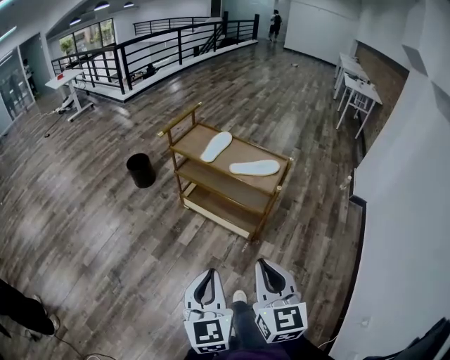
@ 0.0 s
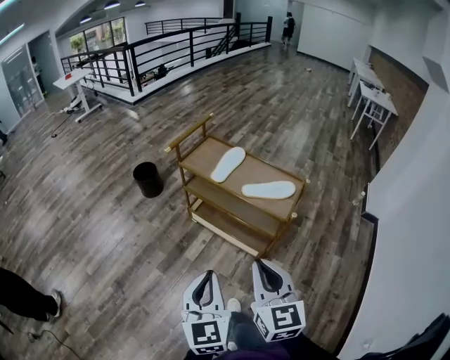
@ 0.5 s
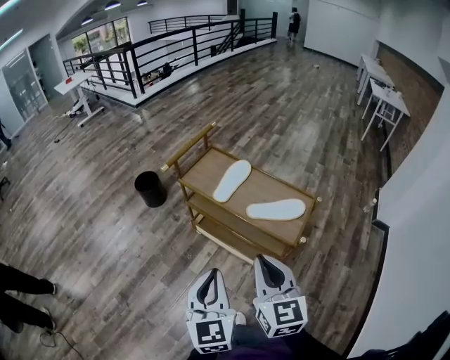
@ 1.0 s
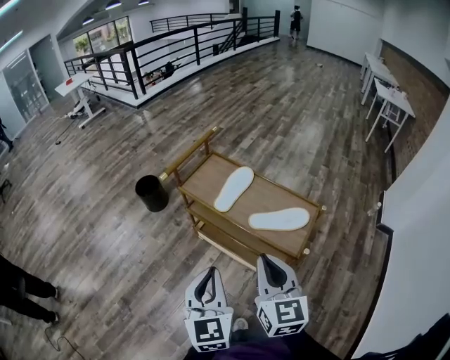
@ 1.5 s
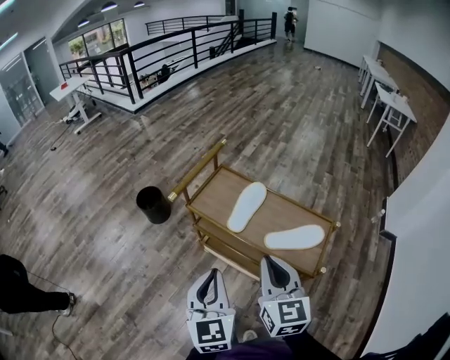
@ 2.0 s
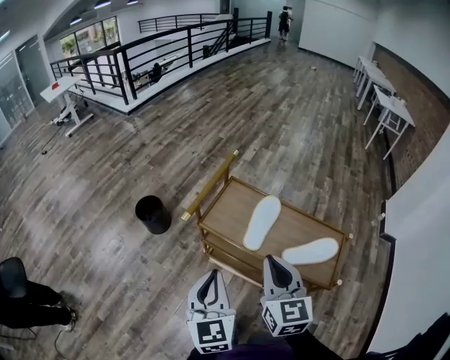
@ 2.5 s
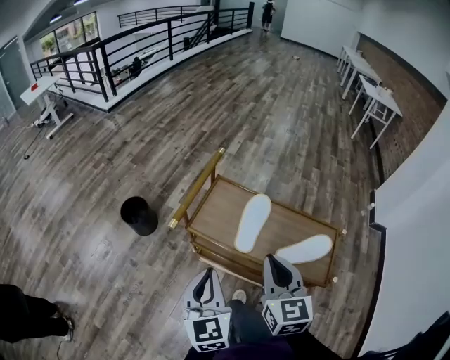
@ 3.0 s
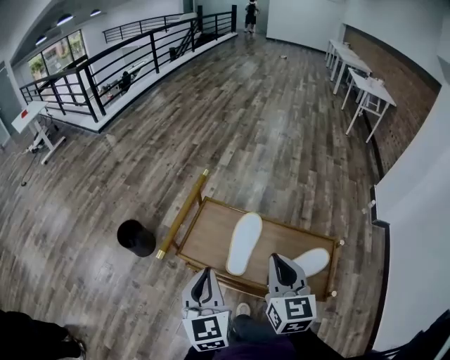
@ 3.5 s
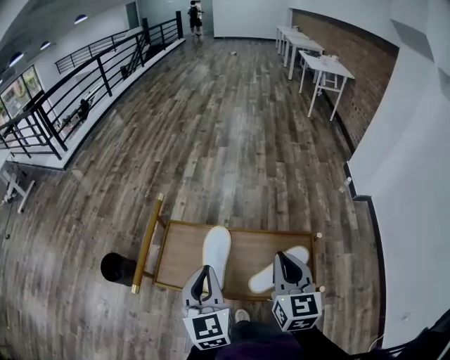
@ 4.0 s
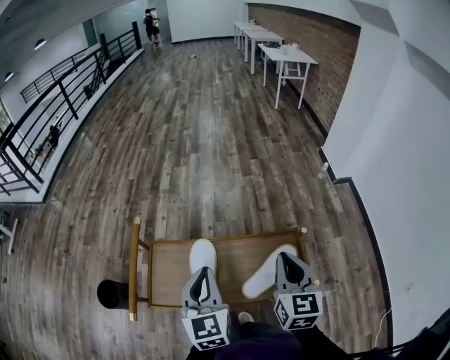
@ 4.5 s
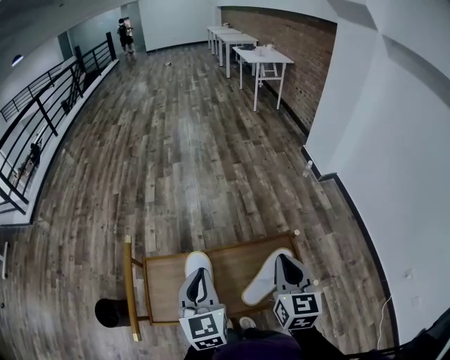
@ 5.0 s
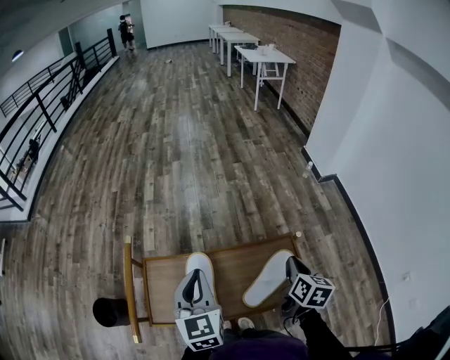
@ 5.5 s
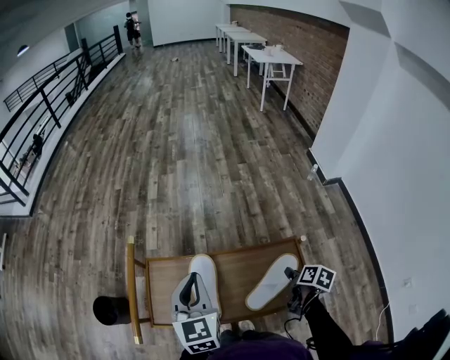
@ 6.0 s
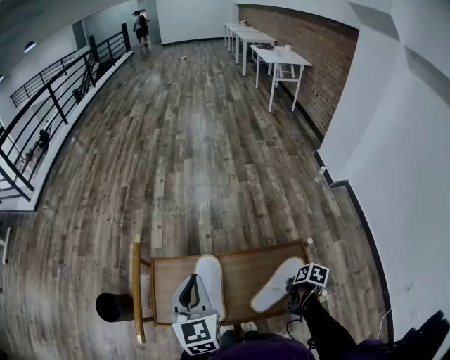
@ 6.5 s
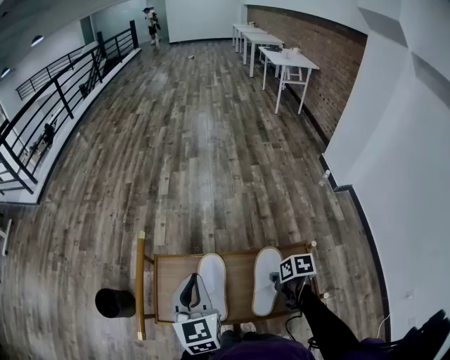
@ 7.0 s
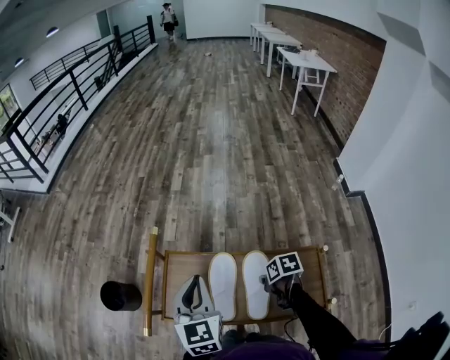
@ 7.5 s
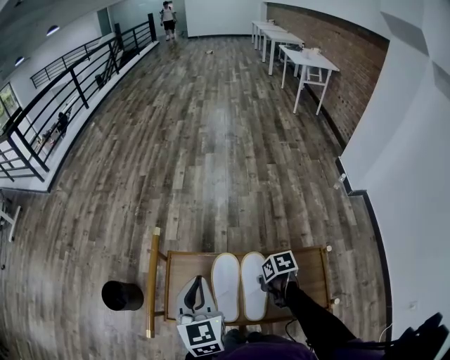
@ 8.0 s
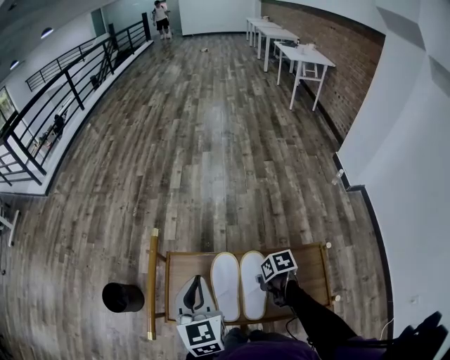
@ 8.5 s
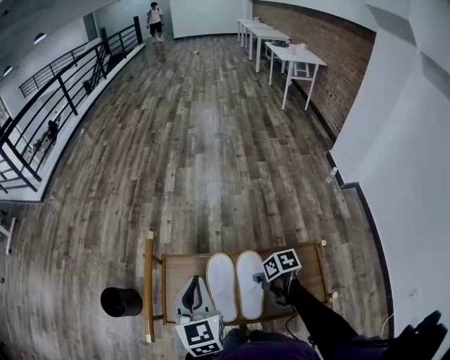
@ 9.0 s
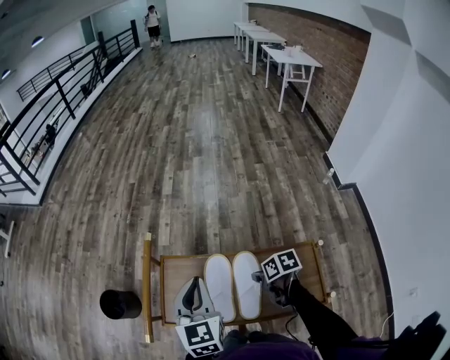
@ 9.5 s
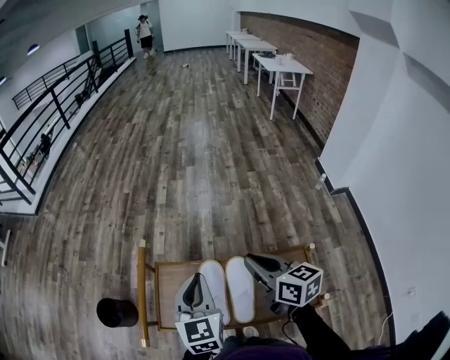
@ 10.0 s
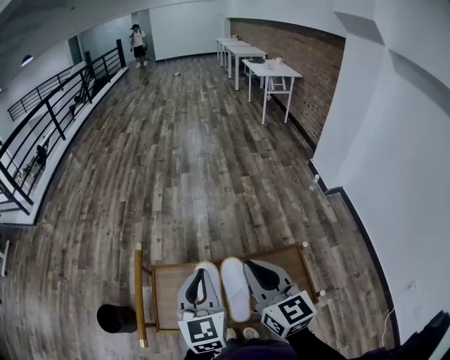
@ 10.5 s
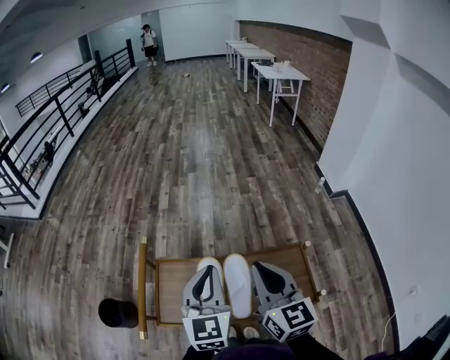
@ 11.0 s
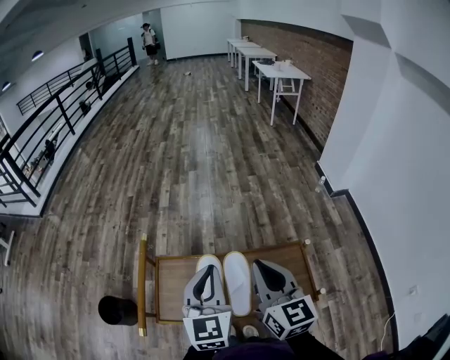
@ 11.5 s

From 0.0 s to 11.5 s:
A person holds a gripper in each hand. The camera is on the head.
From 0.0 s to 2.0 s: Both grippers move forward, roughly 40 cm.
From 2.0 s to 4.0 s: The right gripper shifts about 25 cm forward and to the right, and swivels about 30 degrees. Meanwhile the left gripper goes about 25 cm forward.
From 4.0 s to 6.0 s: The left gripper goes some 10 cm forward, while the right gripper is displaced downward and to the right by about 25 cm, rolls clockwise, seen from behind, by approximately 50 degrees, and opens up.
From 6.0 s to 7.5 s: The left gripper moves approximately 5 cm. The right gripper shifts by roughly 20 cm, turns by about 50 degrees, and closes its fingers.
From 7.5 s to 9.5 s: The grippers make only small movements.
From 9.5 s to 11.5 s: The right gripper goes approximately 30 cm upward, and tilts its fingers some 50 degrees upward, while the left gripper changes place by about 10 cm.

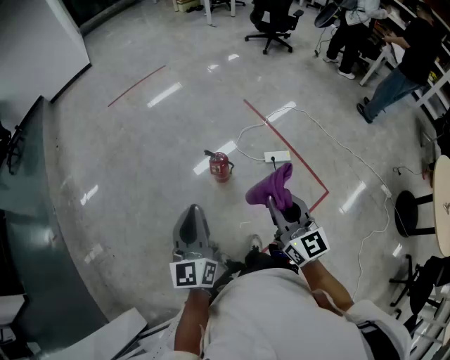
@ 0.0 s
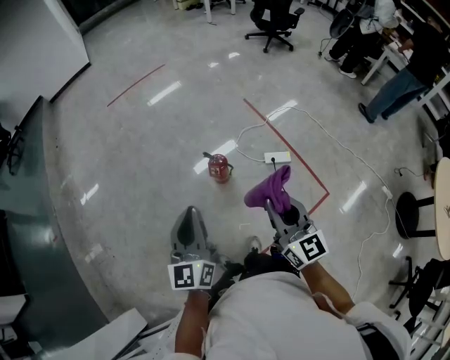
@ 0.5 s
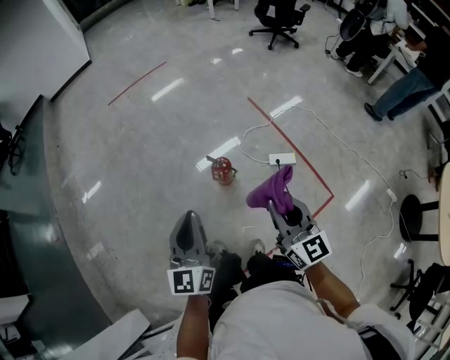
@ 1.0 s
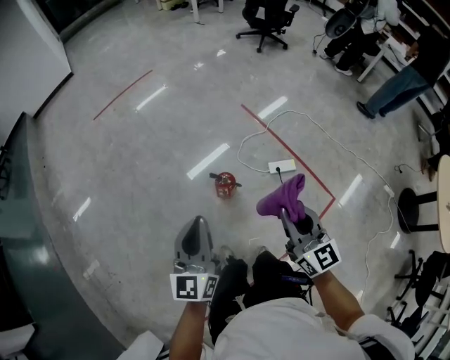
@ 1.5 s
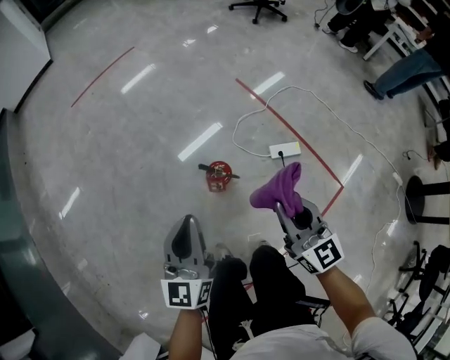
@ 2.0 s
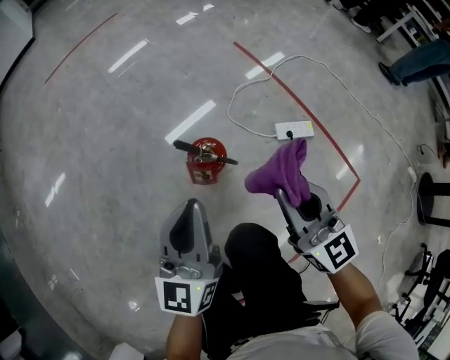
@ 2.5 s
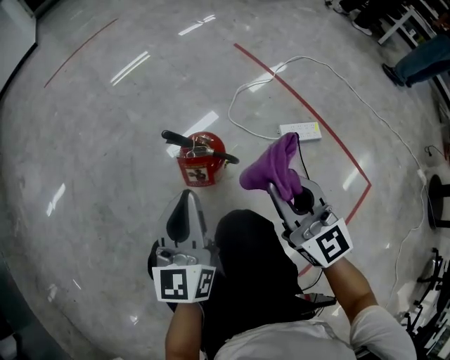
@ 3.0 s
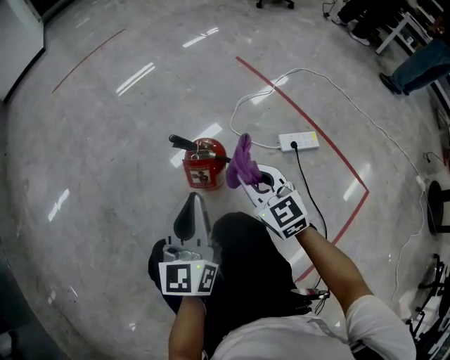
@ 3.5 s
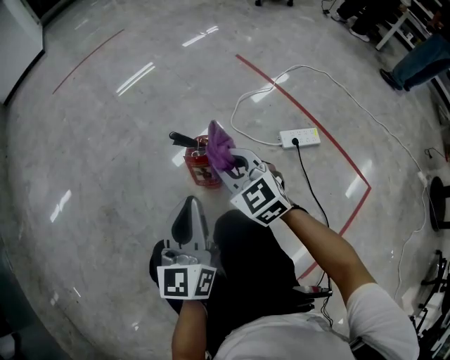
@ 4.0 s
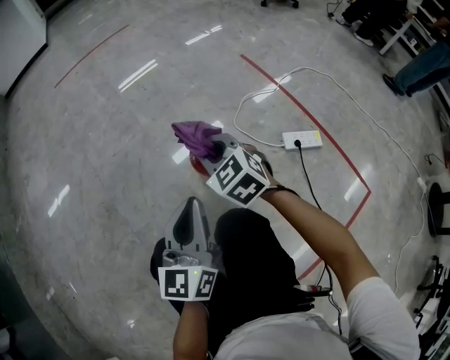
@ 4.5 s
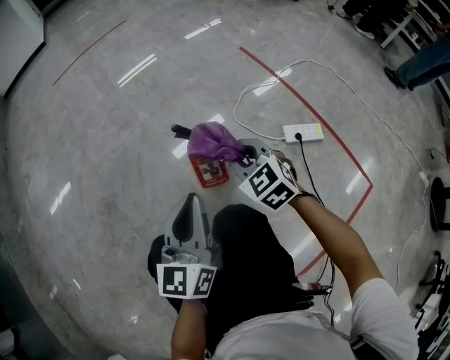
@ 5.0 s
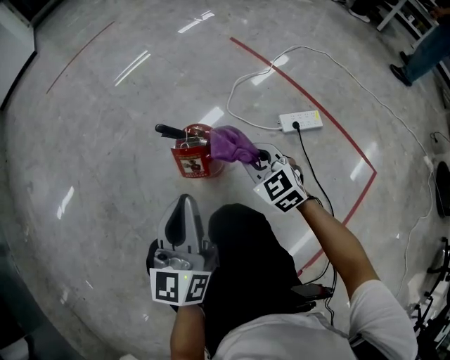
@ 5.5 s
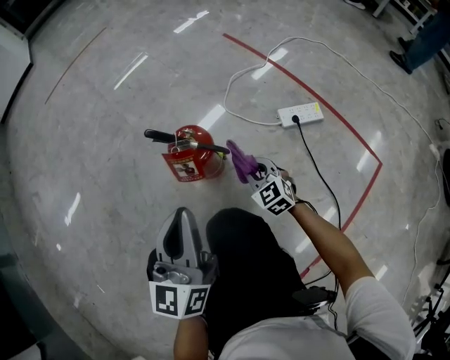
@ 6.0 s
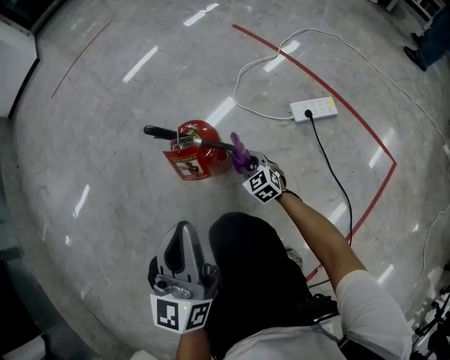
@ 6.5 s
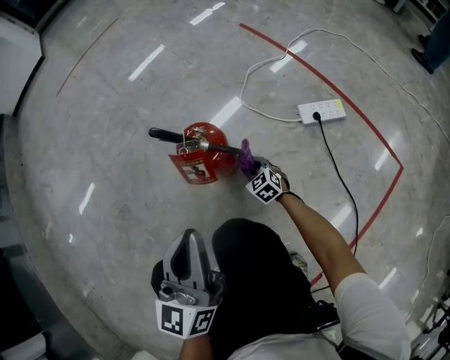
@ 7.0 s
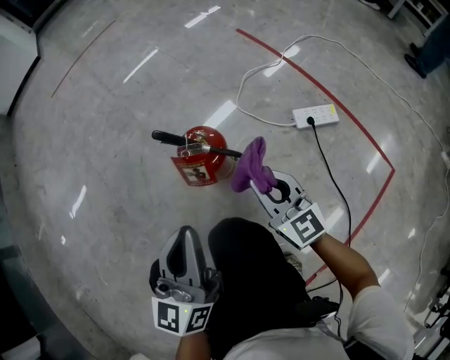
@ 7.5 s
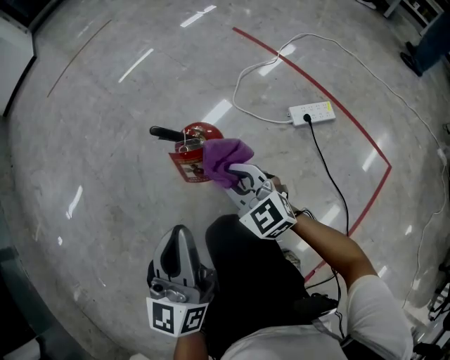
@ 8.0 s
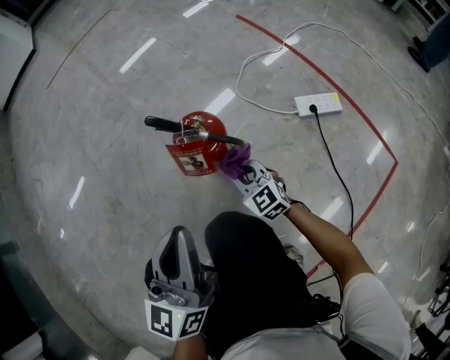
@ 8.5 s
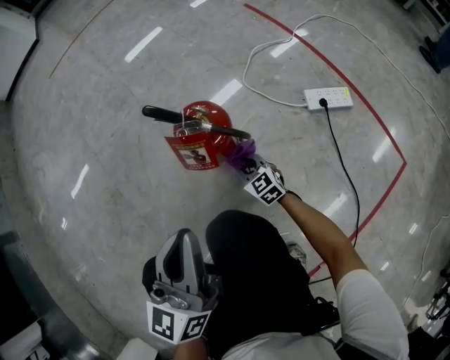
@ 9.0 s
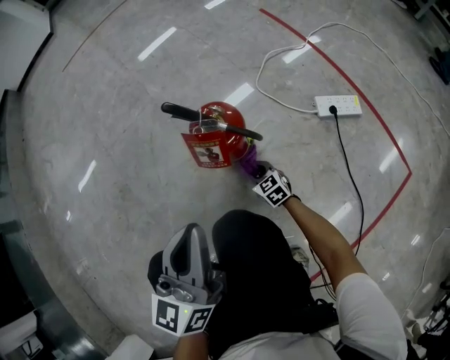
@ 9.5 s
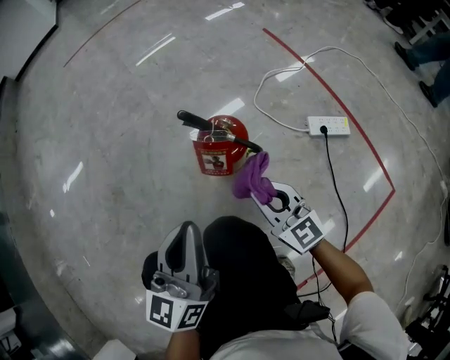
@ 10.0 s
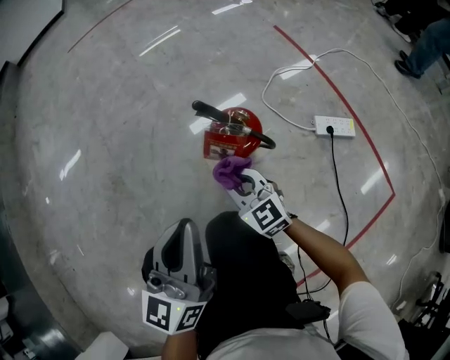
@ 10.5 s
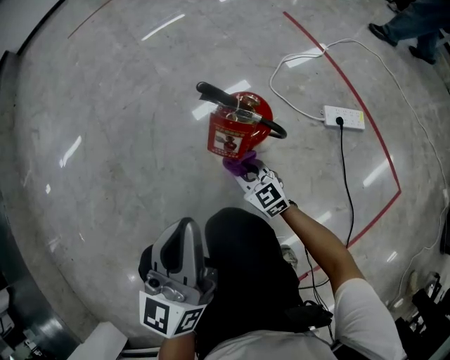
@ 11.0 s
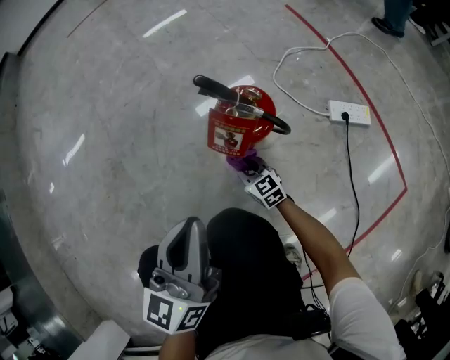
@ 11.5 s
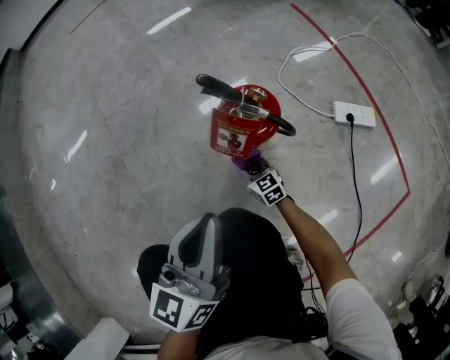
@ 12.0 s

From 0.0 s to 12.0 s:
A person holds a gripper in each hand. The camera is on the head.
From 0.0 s to 2.0 s: The right gripper shifts roughly 30 cm downward and forward; the left gripper travels forward and downward by some 30 cm.
From 2.0 s to 4.0 s: Both grippers travel together downward, about 40 cm. The right gripper swivels roughly 30 degrees.
From 4.0 s to 6.0 s: The right gripper heads downward and to the right, covering approximately 25 cm.
From 6.0 s to 8.0 s: The right gripper is displaced upward and to the left by some 15 cm.
From 8.0 s to 10.0 s: The right gripper travels backward by roughly 5 cm, and goes downward and returns, roughly 30 cm each way.
From 10.0 s to 12.0 s: The right gripper goes approximately 30 cm downward, and rotates roughly 20 degrees.

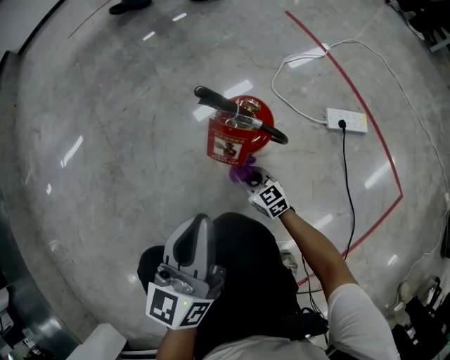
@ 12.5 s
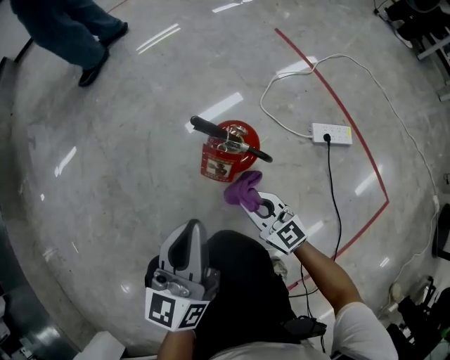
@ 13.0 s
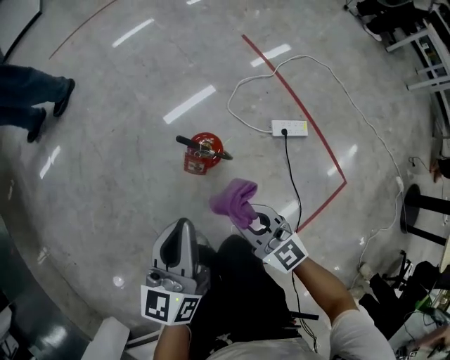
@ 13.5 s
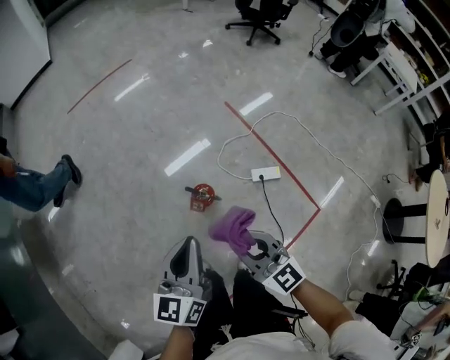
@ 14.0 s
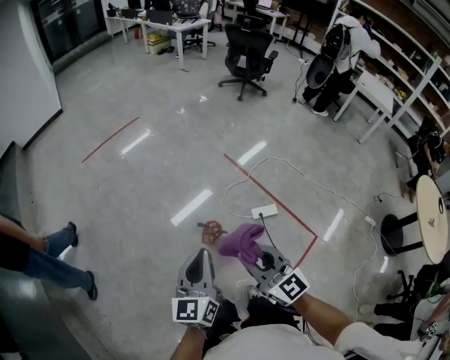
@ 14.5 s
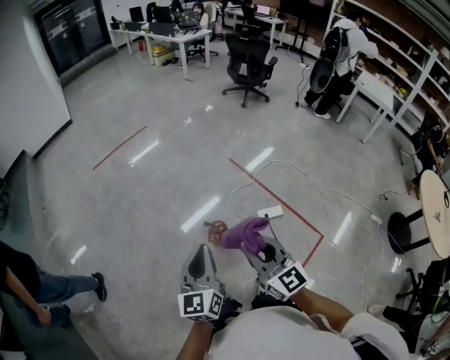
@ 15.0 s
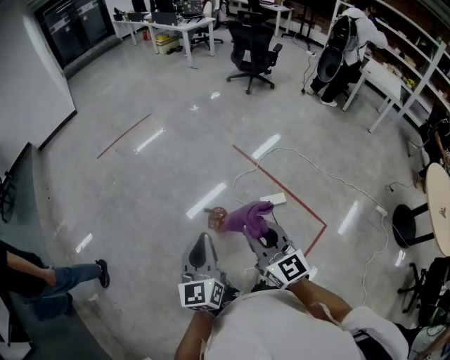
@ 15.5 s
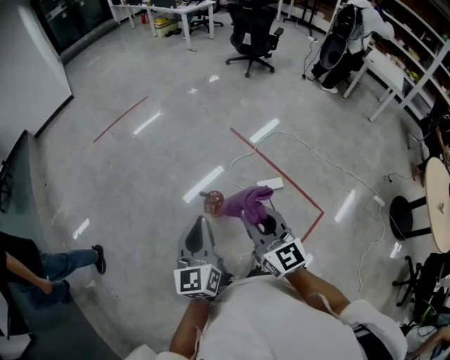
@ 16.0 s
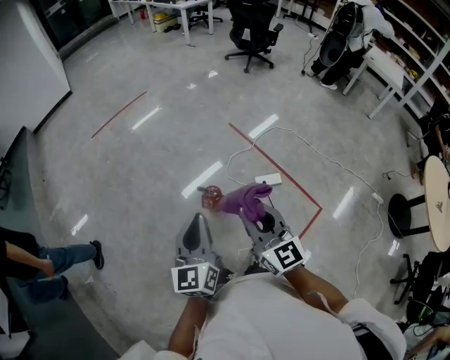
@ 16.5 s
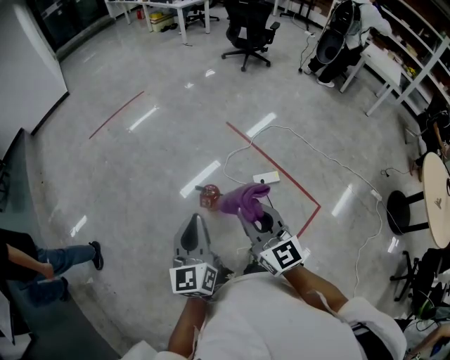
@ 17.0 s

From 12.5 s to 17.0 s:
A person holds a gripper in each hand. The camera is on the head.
From 12.5 s to 14.5 s: The right gripper heads upward, covering roughly 1 m, and rotates roughly 30 degrees. The left gripper heads upward, covering about 60 cm.
From 14.5 s to 17.0 s: The left gripper heads backward, covering roughly 5 cm, while the right gripper shifts some 5 cm to the right.
